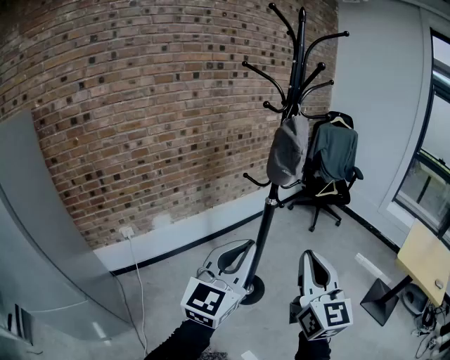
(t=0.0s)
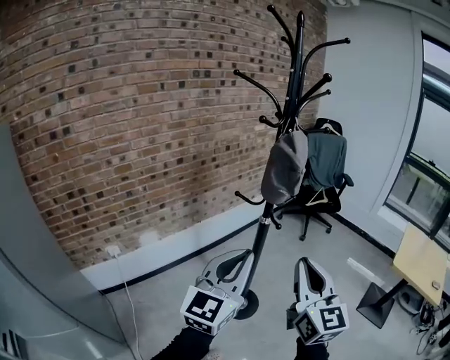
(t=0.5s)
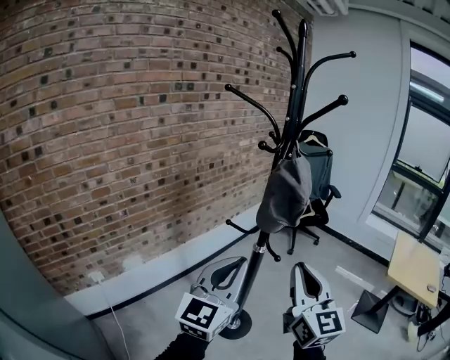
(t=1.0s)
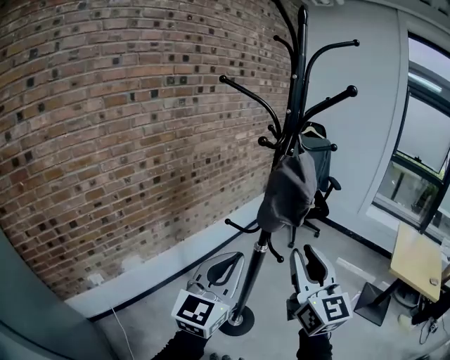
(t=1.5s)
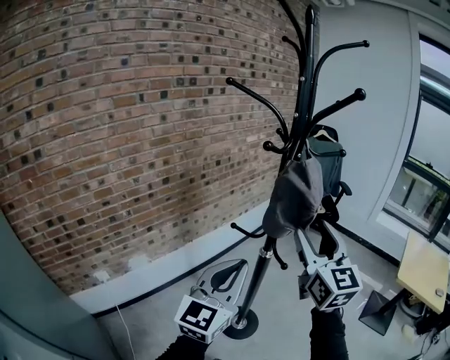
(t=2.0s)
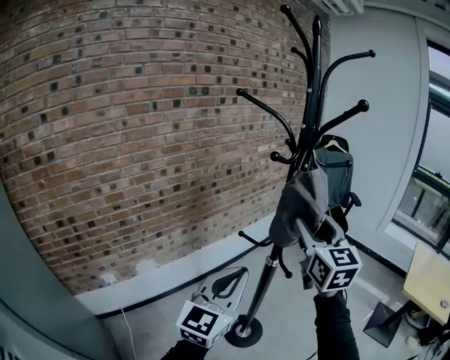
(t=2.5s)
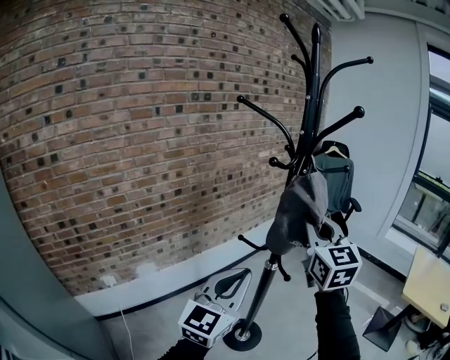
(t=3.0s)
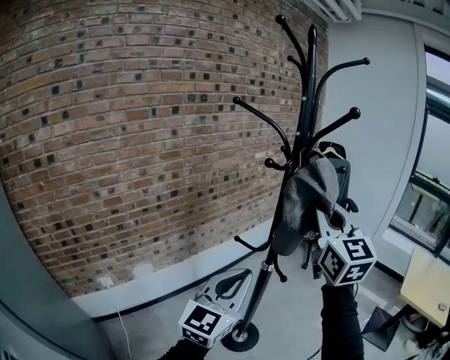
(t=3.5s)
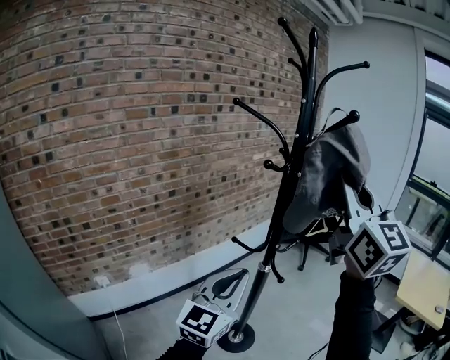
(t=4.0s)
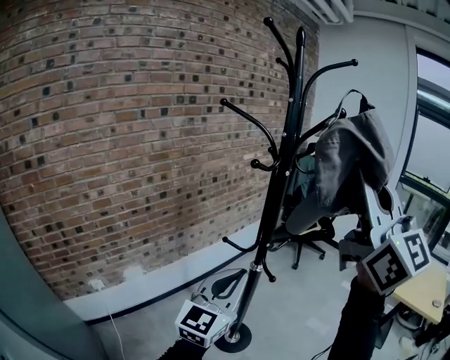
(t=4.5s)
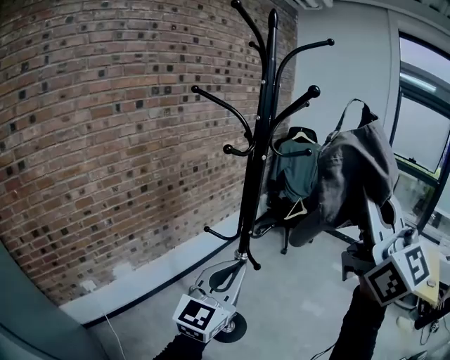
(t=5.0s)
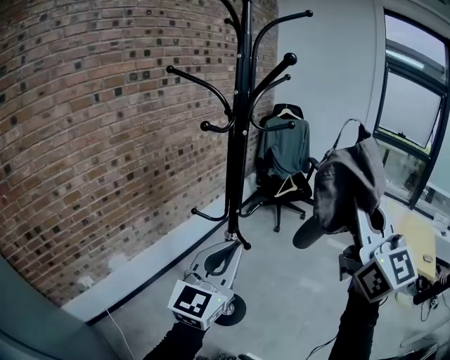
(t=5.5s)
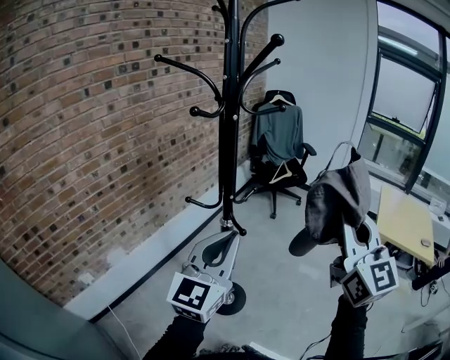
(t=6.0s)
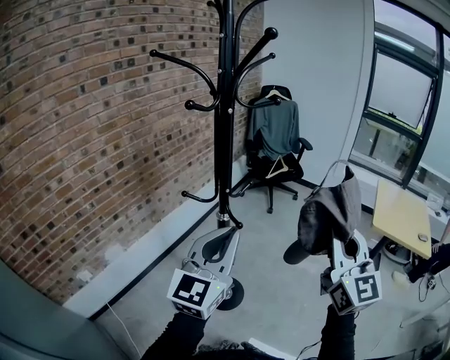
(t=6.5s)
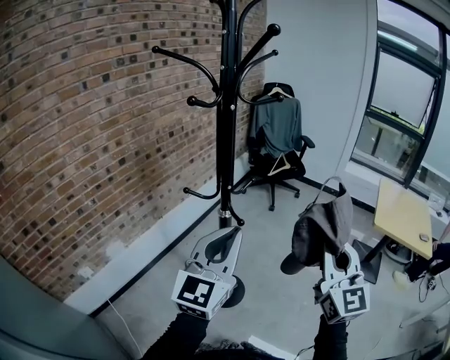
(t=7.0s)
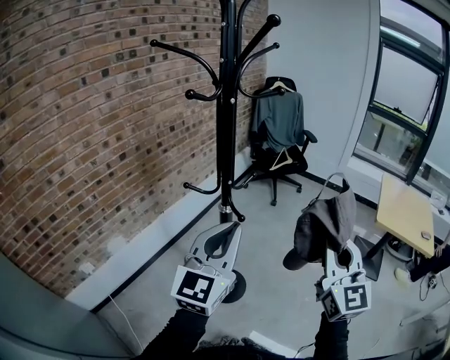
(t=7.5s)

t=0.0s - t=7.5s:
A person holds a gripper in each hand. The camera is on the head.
t=0.0s - t=2.0s: Both grippers travel together forward, about 25 cm. The right gripper opens.
t=2.0s - t=4.0s: The right gripper heads upward, covering approximately 20 cm, and closes its fingers.
t=4.0s - t=5.5s: The right gripper is displaced to the right, downward and backward by some 15 cm. The left gripper goes some 10 cm to the right.
t=5.5s - t=7.5s: The right gripper is displaced downward by some 15 cm.

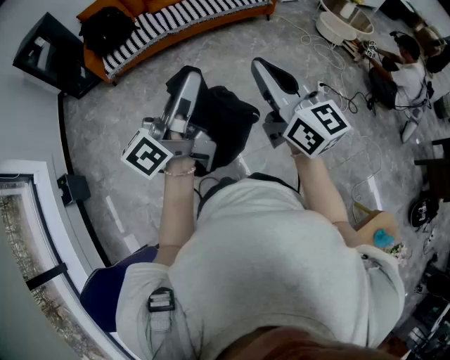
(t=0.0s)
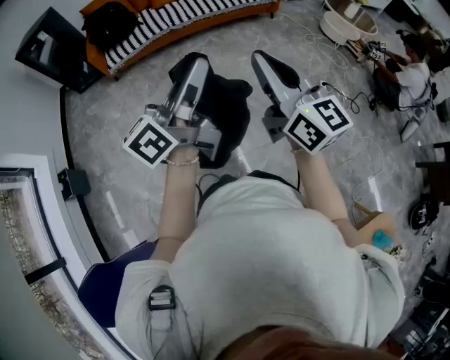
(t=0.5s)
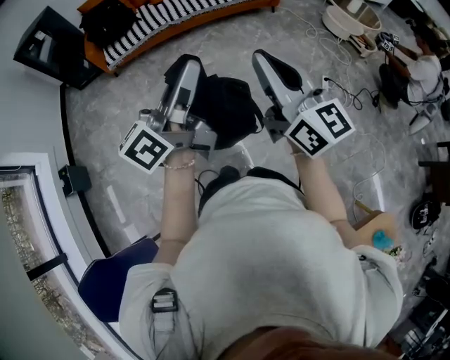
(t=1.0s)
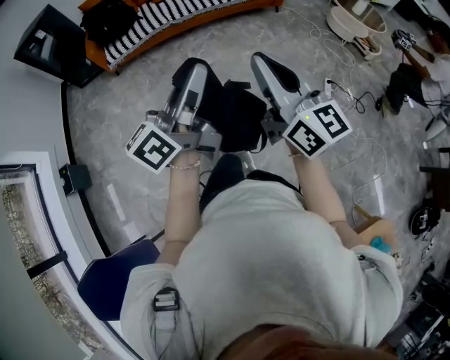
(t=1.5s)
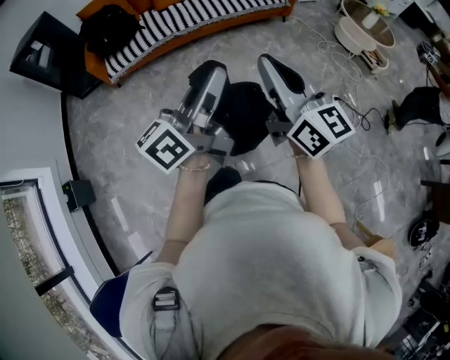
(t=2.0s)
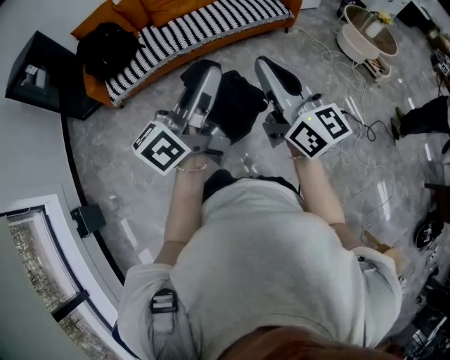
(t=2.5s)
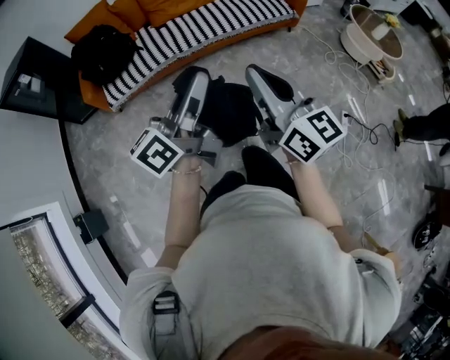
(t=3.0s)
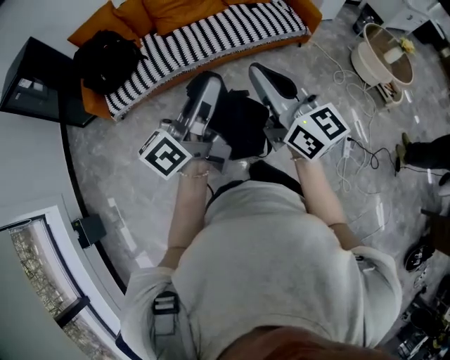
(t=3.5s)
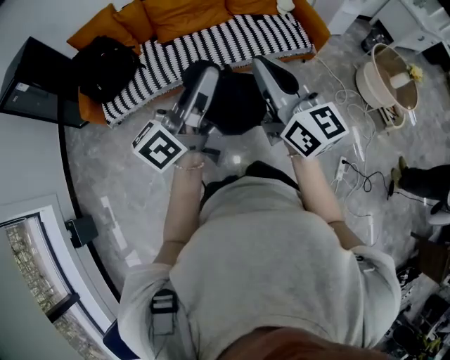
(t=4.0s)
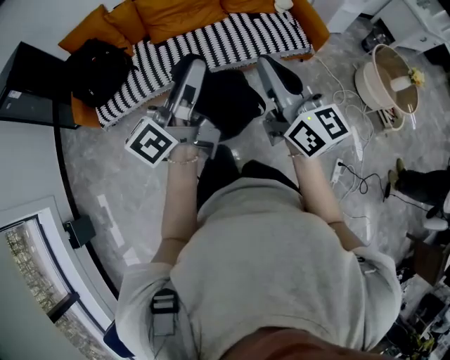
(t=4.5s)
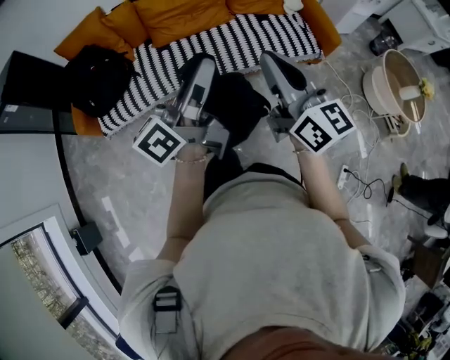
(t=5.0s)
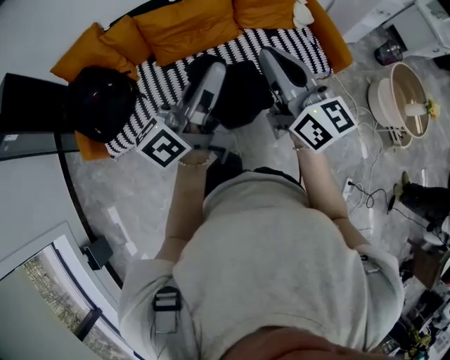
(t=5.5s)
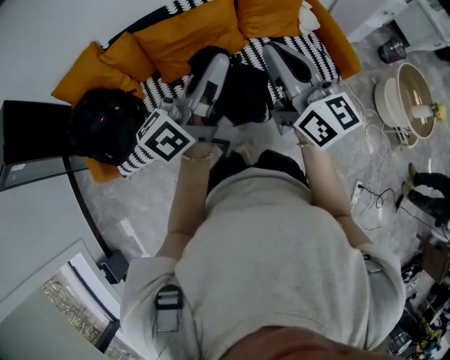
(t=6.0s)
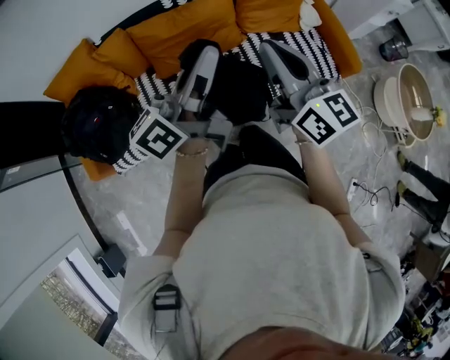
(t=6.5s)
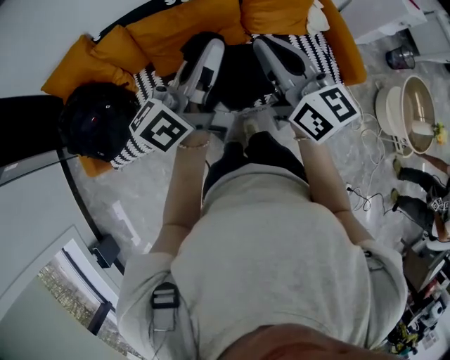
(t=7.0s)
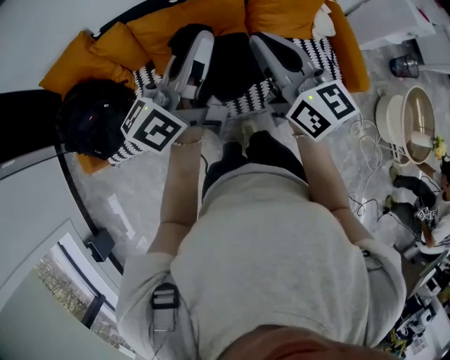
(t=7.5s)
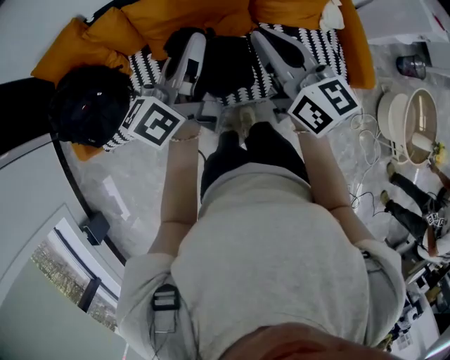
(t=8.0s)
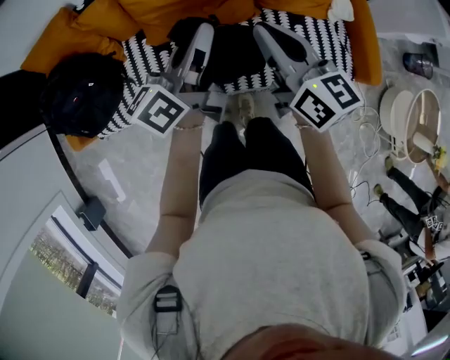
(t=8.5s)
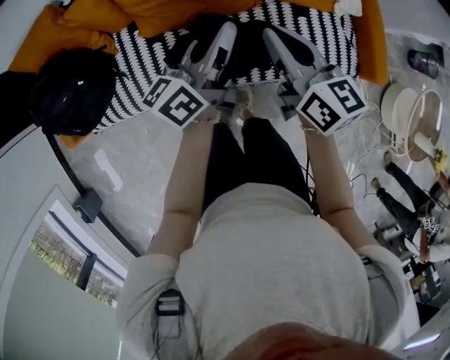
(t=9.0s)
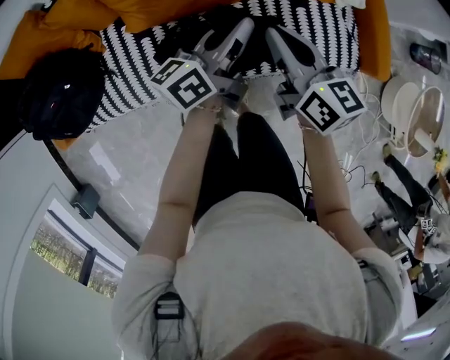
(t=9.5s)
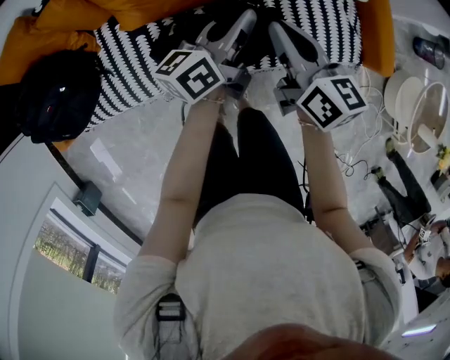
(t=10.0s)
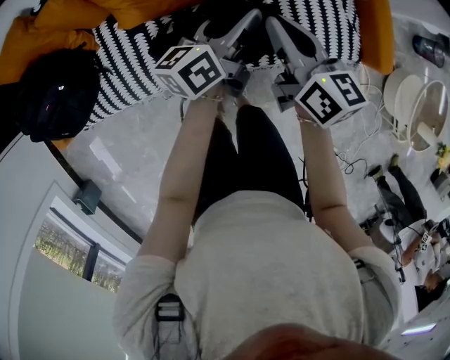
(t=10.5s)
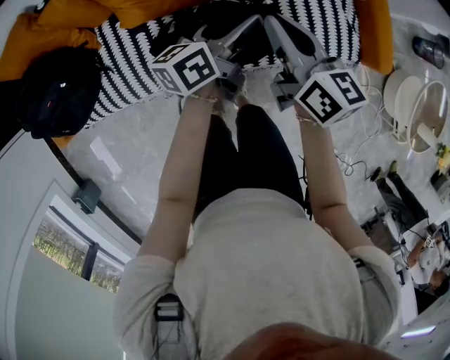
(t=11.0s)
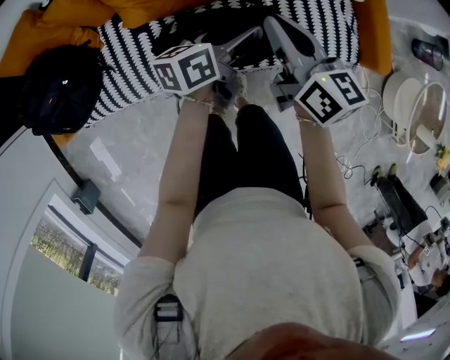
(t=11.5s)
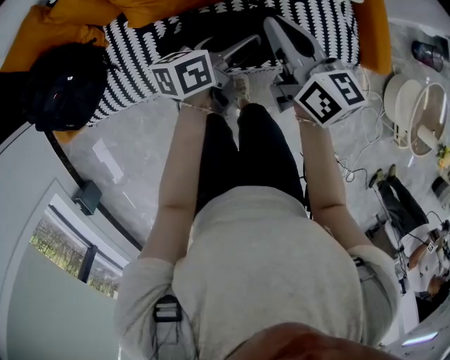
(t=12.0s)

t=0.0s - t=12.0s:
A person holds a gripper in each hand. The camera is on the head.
t=0.0s - t=2.0s: The two grippers go some 25 cm forward.
t=2.0s - t=4.0s: The pair of grippers is taken forward, some 60 cm.
t=4.0s - t=6.0s: Both grippers are carried forward, about 60 cm.
t=6.0s - t=8.0s: Both grippers travel together forward and downward, approximately 25 cm. The left gripper turns by about 20 degrees.
t=8.0s - t=10.0s: The right gripper is displaced downward by some 25 cm, and swivels about 20 degrees, while the left gripper moves downward, to the right and forward, about 30 cm.
t=10.0s - t=12.0s: The right gripper shifts some 5 cm upward, while the left gripper goes approximately 10 cm backward, swivels approximately 20 degrees, and opens its fingers.

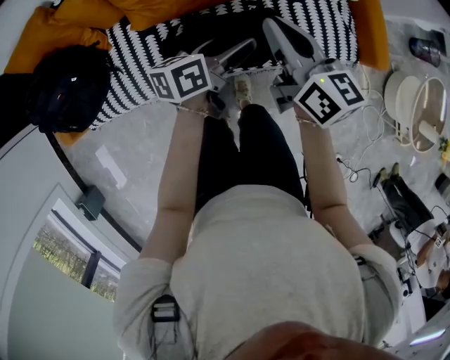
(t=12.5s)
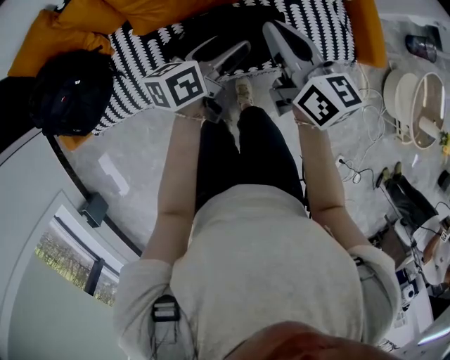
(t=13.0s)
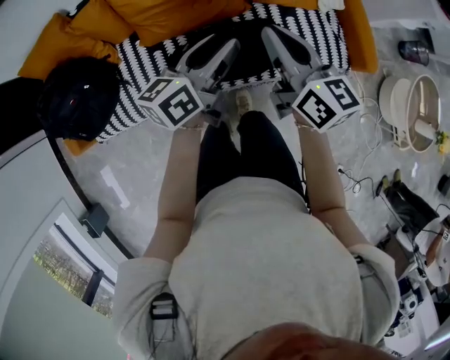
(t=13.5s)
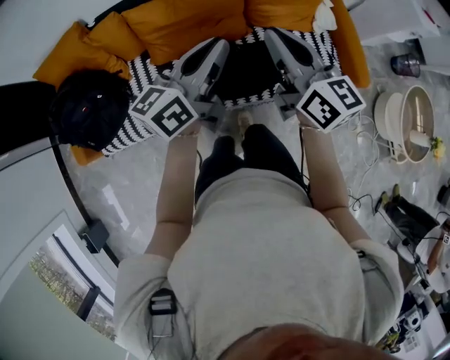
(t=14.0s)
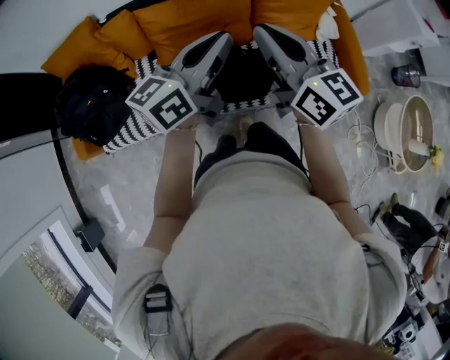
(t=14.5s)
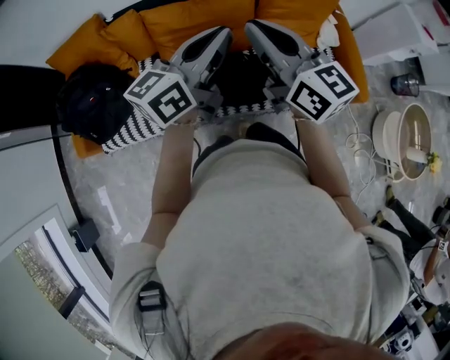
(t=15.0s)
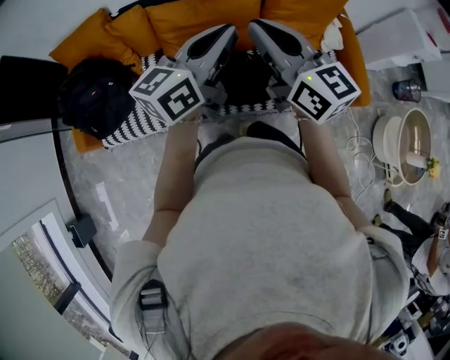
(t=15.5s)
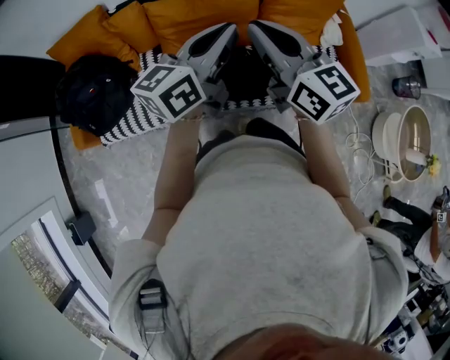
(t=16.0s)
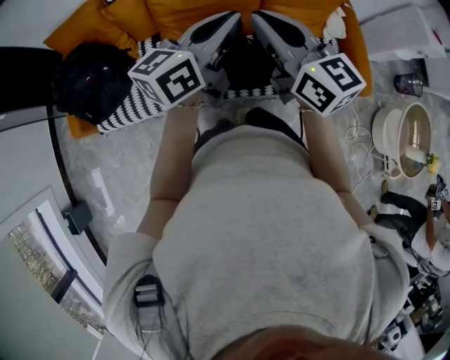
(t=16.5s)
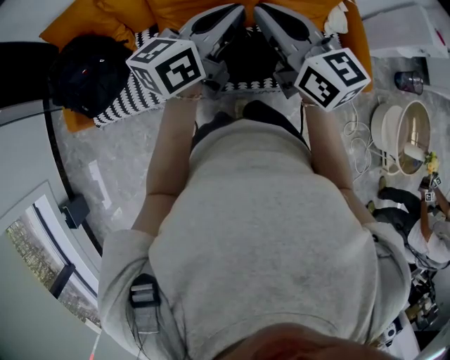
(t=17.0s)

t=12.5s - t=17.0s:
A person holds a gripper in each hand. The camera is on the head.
t=12.5s - t=14.5s: The left gripper moves upward, some 30 cm, swivels approximately 40 degrees, and closes its fingers. Meanwhile the right gripper travels upward and backward by roughly 25 cm, and swivels some 20 degrees.
t=14.5s - t=17.0s: The grippers make only small movements.

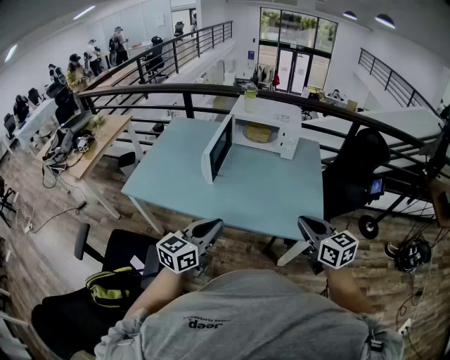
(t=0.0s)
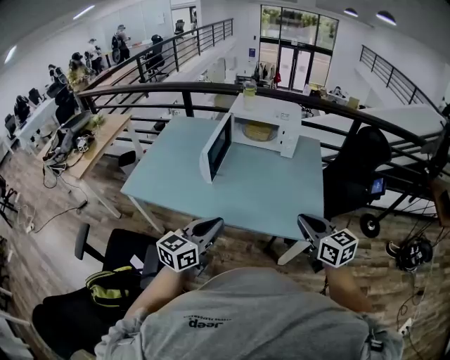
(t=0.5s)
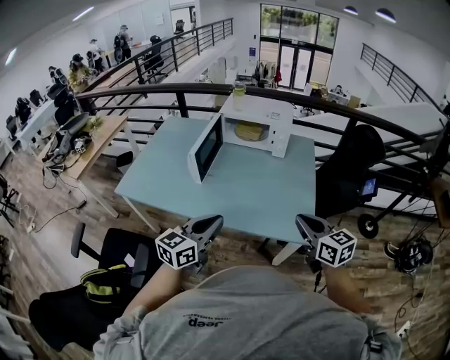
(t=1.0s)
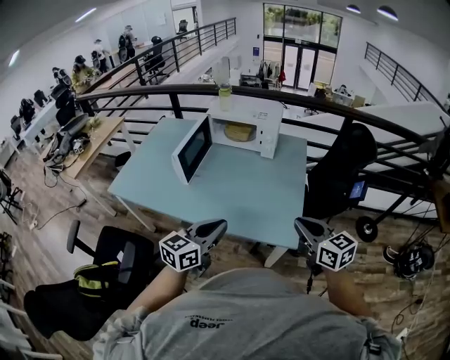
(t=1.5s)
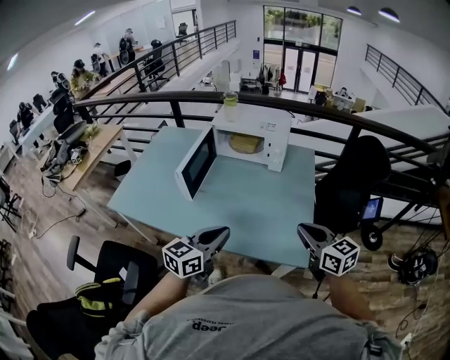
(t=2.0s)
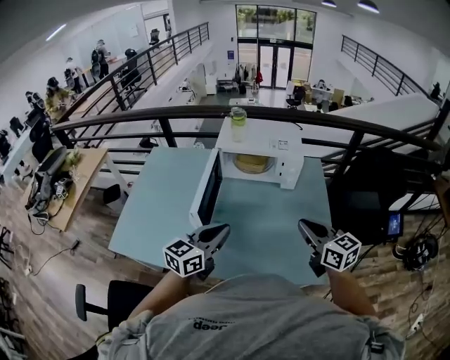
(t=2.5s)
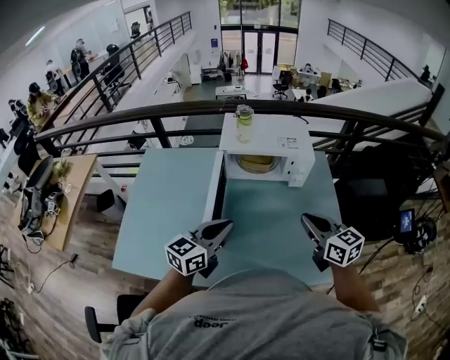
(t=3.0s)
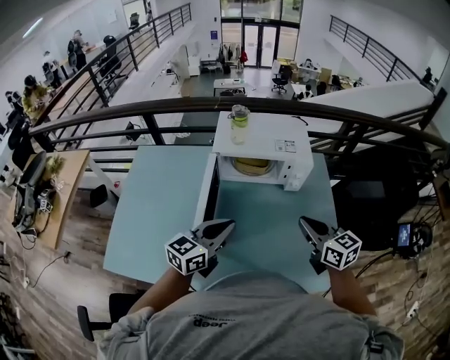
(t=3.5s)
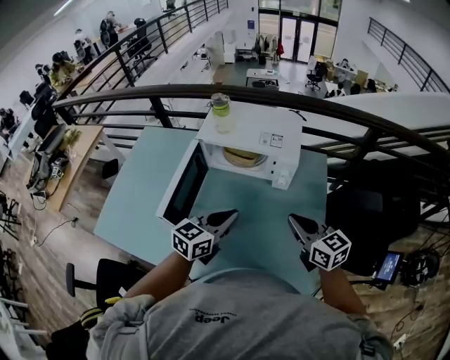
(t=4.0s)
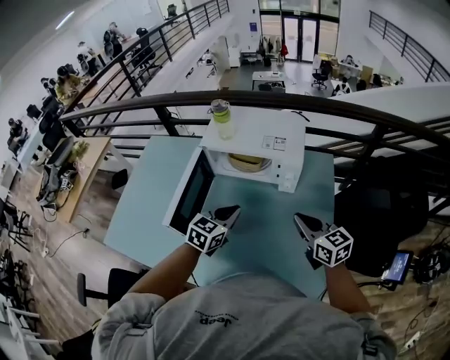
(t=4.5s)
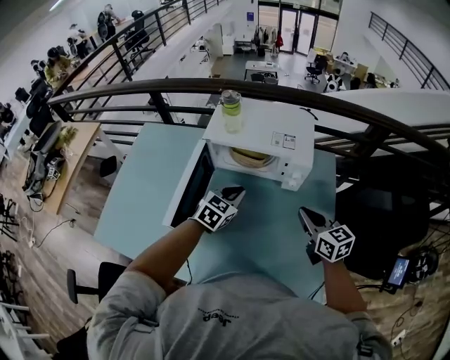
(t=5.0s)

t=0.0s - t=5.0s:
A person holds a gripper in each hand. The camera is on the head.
t=0.0s - t=2.5s: The two grippers go roughly 25 cm forward.
t=2.5s - t=5.0s: Both grippers move forward and downward, some 25 cm. The left gripper turns by roughly 30 degrees.
